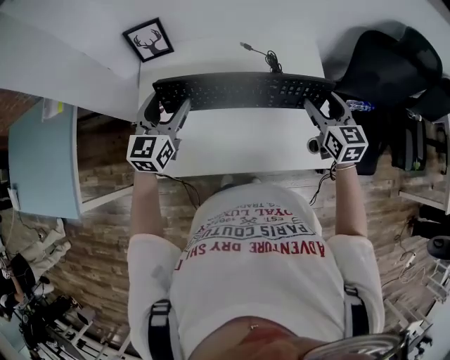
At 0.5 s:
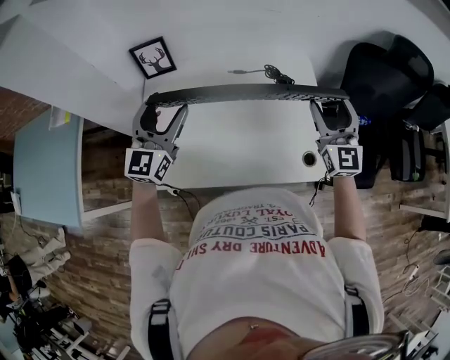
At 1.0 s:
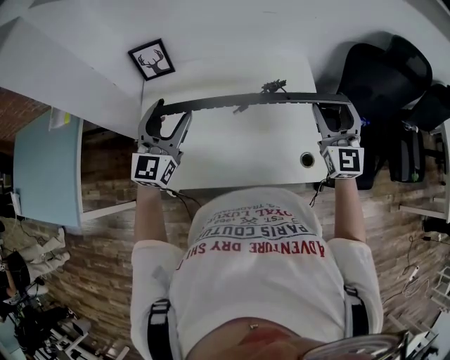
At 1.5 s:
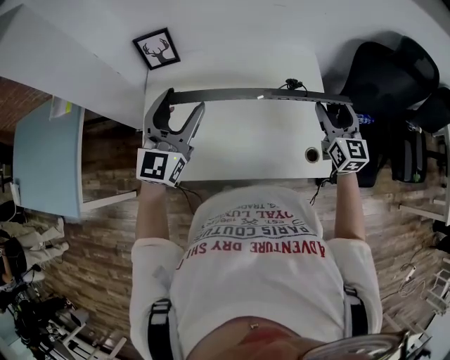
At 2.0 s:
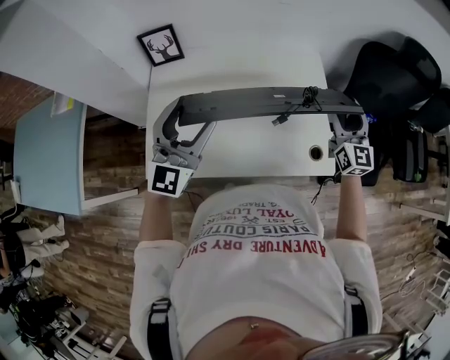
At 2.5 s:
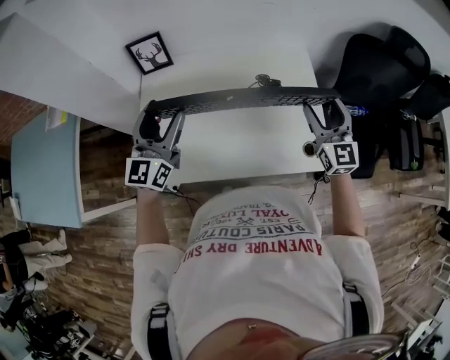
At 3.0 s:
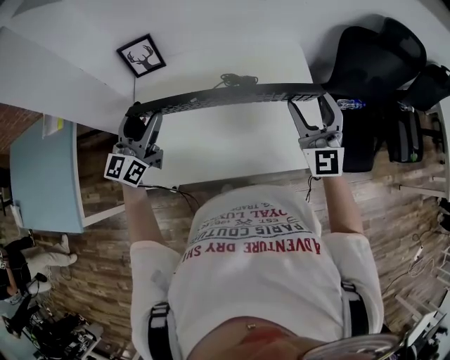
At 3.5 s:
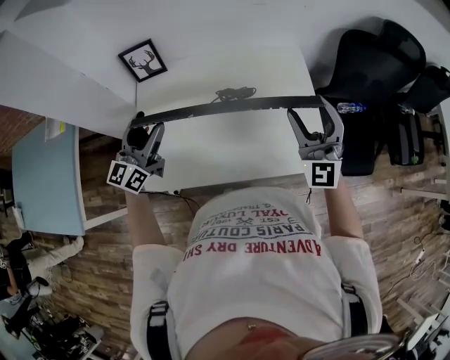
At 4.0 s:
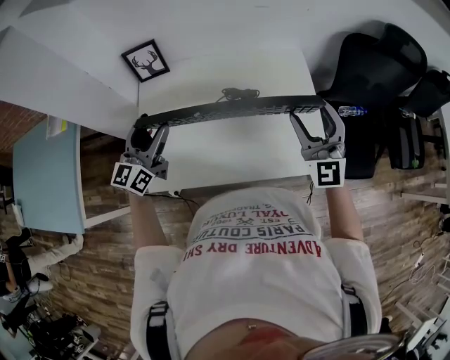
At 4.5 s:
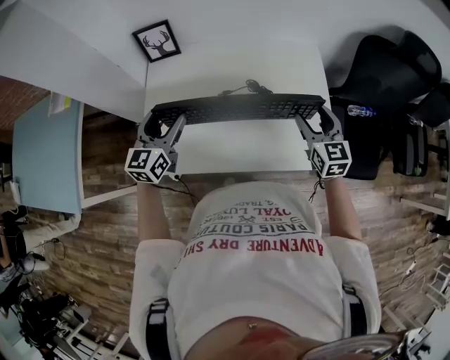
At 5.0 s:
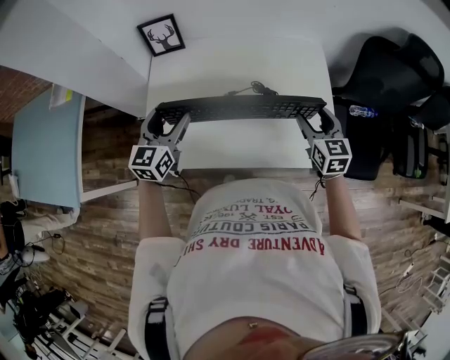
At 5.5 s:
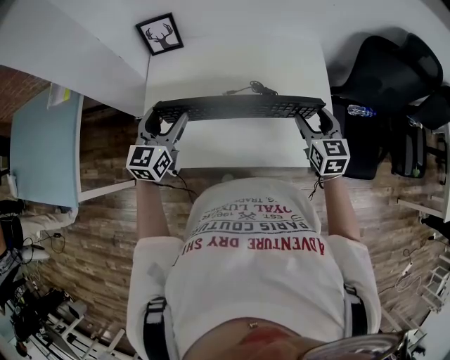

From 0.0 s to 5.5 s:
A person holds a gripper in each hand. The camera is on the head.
From 0.0 s to 2.0 s: The left gripper shifts about 15 cm upward, backward and to the right, and rotates about 30 degrees, while the right gripper goes approximately 10 cm to the right and upward, and swivels approximately 20 degrees.
From 2.0 s to 3.5 s: The right gripper heads to the left, upward and backward, covering approximately 15 cm, and changes its angle by approximately 30 degrees, while the left gripper is displaced to the left and downward by roughly 10 cm, and swivels about 30 degrees.
From 3.5 s to 5.5 s: The right gripper shifts approximately 15 cm downward, and points its fingers some 40 degrees further downward. The left gripper travels downward by some 5 cm, and swivels approximately 20 degrees.

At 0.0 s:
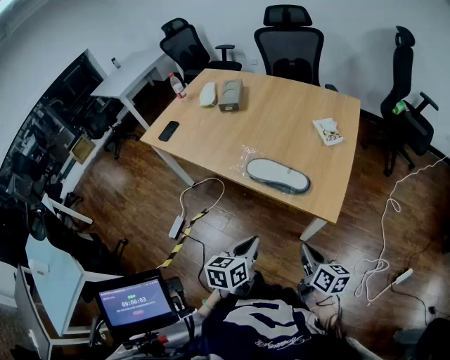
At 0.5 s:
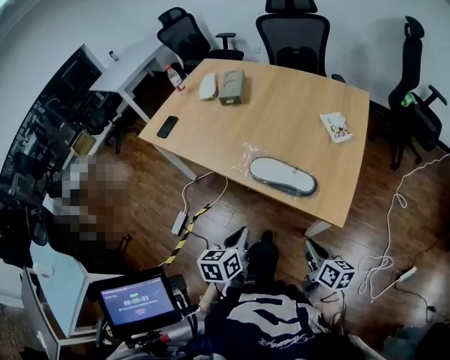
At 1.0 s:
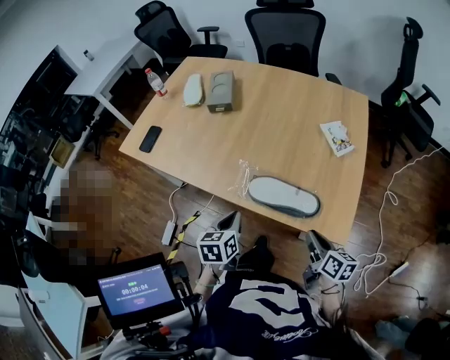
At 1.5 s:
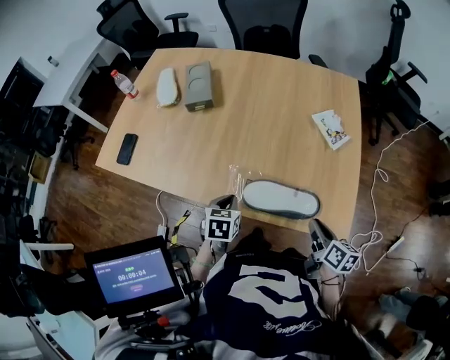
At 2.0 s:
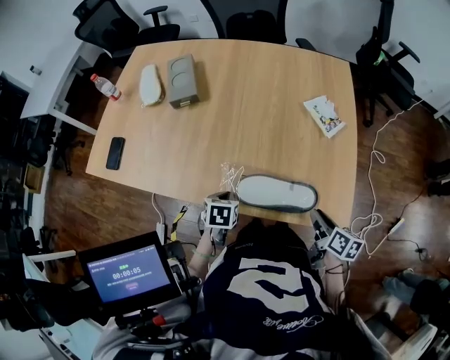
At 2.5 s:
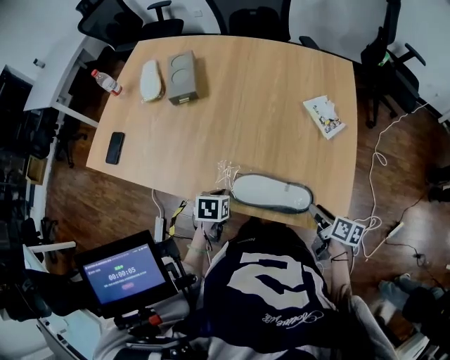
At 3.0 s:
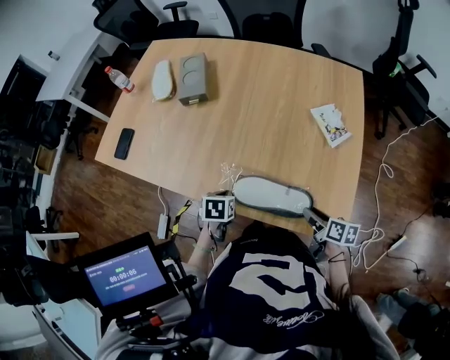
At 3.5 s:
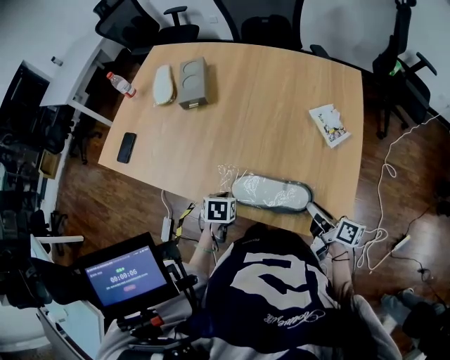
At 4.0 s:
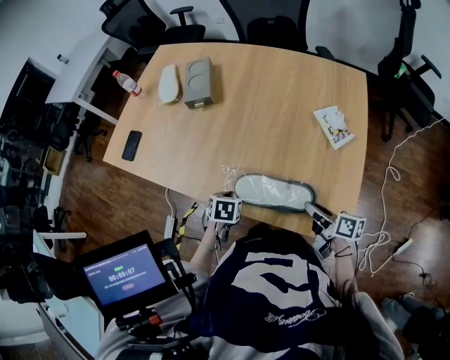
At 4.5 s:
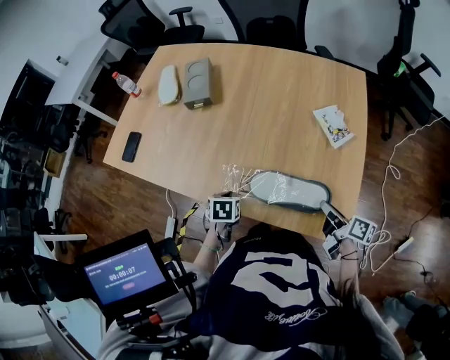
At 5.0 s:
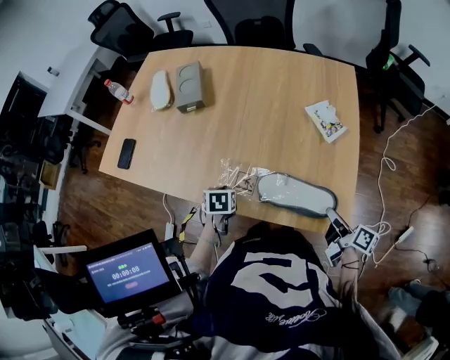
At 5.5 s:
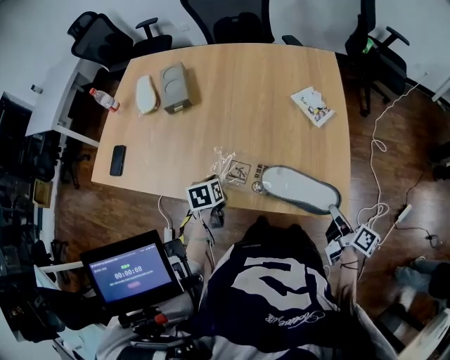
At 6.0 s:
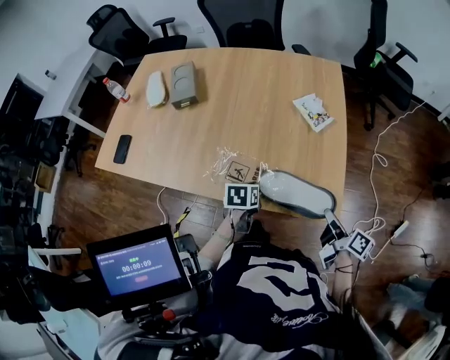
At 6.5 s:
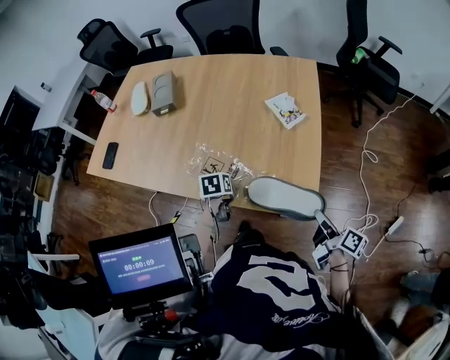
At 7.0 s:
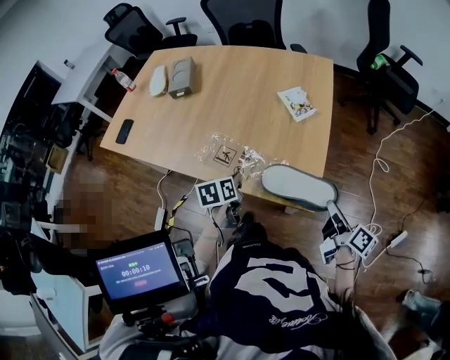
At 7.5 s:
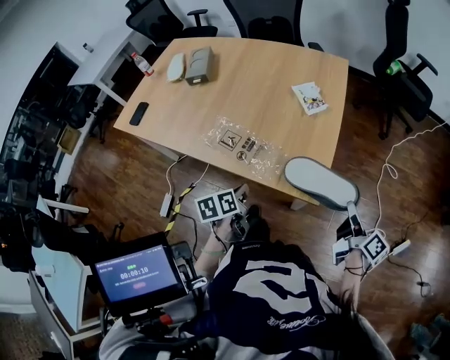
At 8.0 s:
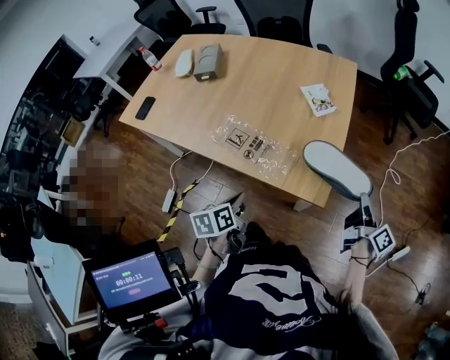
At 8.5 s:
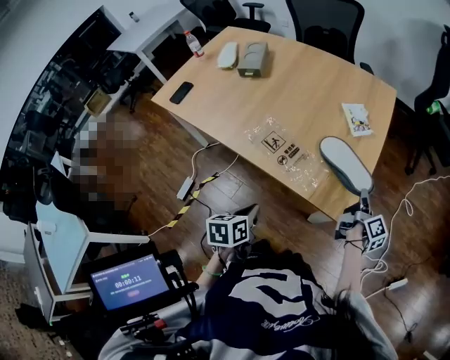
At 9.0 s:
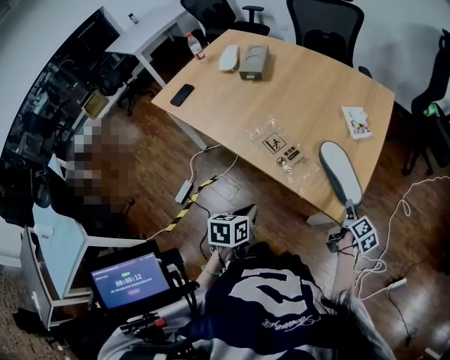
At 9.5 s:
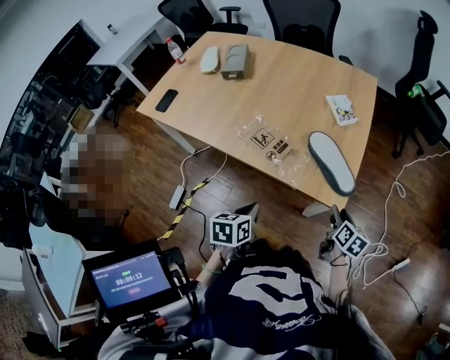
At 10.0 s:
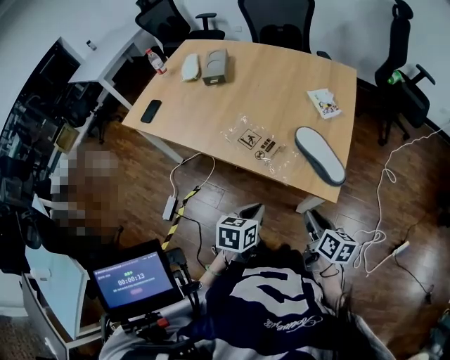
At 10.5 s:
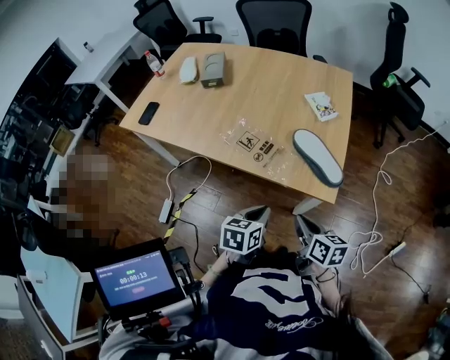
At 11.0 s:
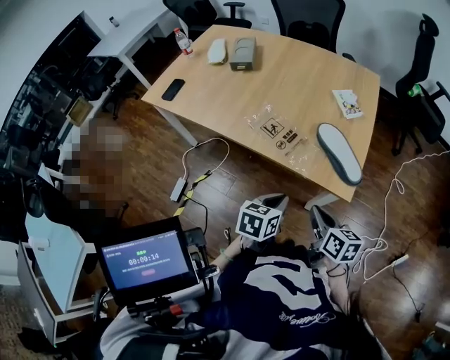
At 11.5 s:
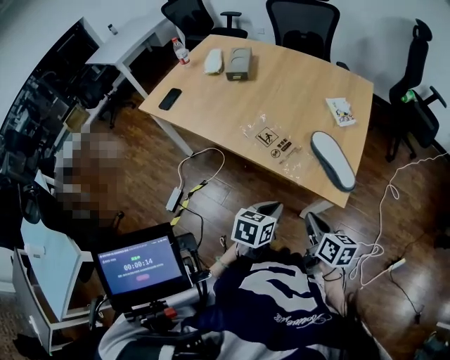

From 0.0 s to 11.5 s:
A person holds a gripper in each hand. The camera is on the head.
From 0.0 s to 2.0 s: The left gripper heads forward and downward, covering about 40 cm, and tilts its fingers approximately 30 degrees downward, while the right gripper travels forward by roughly 25 cm, and changes its angle by roughly 30 degrees.
From 2.0 s to 4.0 s: The right gripper goes about 5 cm forward, and swivels some 30 degrees.
From 4.0 s to 6.0 s: The left gripper changes place by roughly 15 cm. Meanwhile the right gripper changes place by some 15 cm, and turns by some 30 degrees.
From 6.0 s to 7.5 s: The left gripper travels backward and upward by about 15 cm, and turns by approximately 30 degrees, while the right gripper goes roughly 15 cm to the right.
From 7.5 s to 9.5 s: The right gripper travels to the left and downward by some 15 cm, changes its angle by roughly 40 degrees, and opens up. The left gripper is displaced backward by about 10 cm.
From 9.5 s to 11.5 s: The left gripper is displaced to the right by roughly 5 cm. Meanwhile the right gripper shifts some 15 cm to the left, upward and backward, rotates about 30 degrees, and closes its fingers.

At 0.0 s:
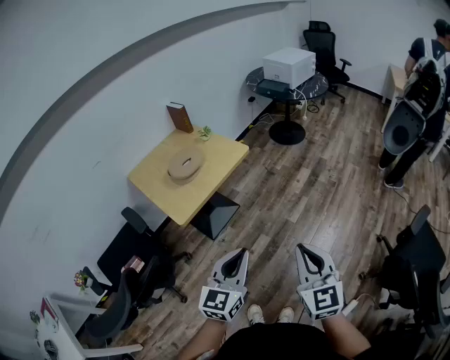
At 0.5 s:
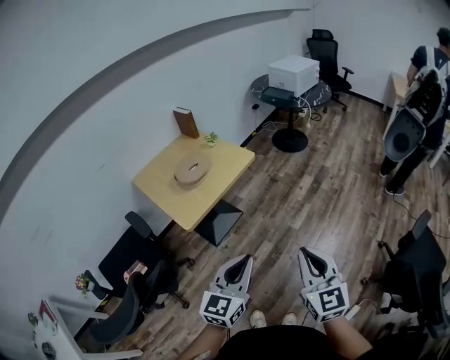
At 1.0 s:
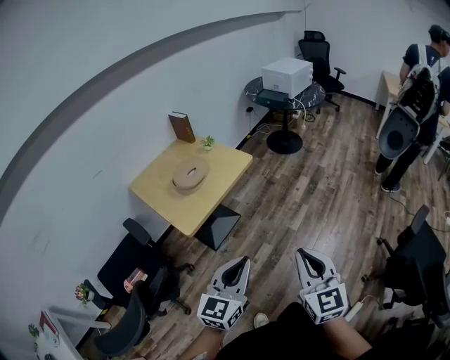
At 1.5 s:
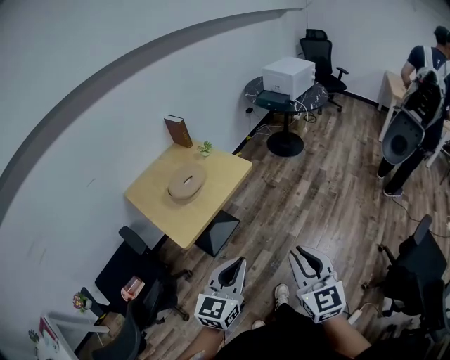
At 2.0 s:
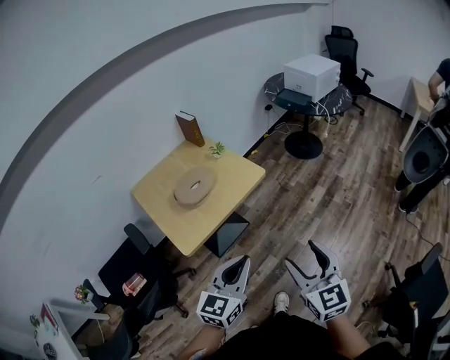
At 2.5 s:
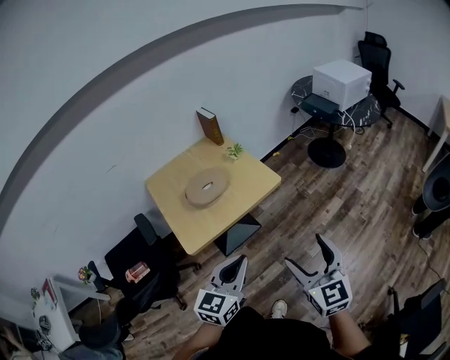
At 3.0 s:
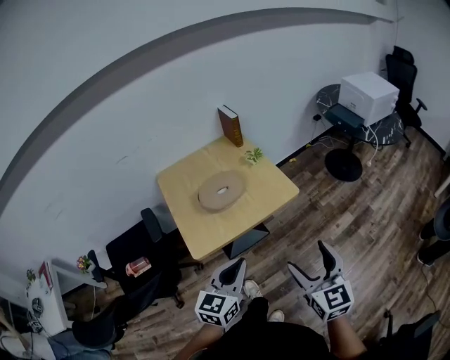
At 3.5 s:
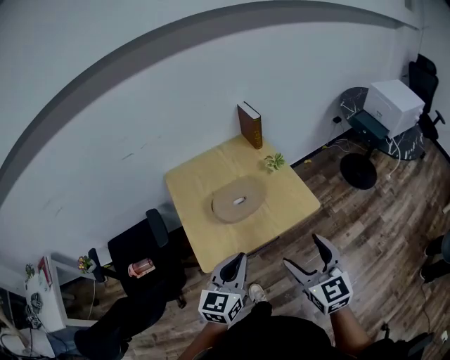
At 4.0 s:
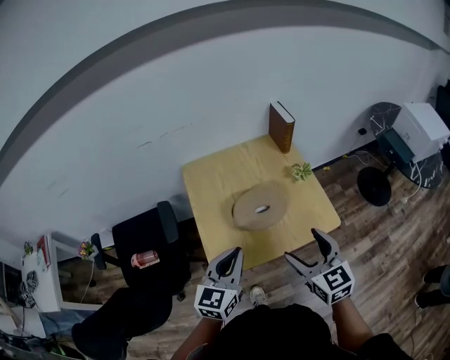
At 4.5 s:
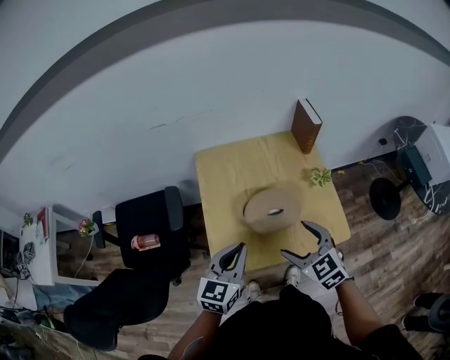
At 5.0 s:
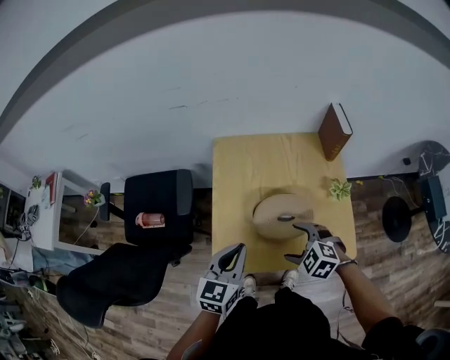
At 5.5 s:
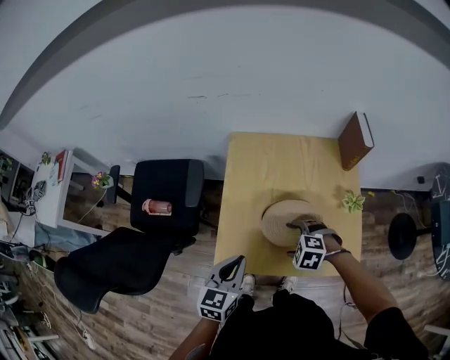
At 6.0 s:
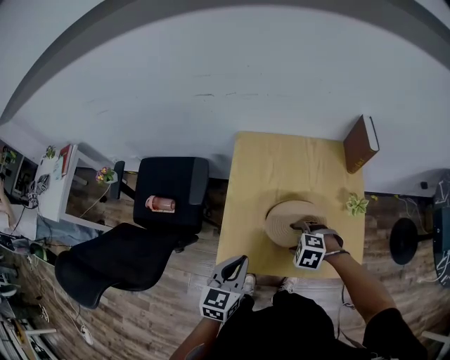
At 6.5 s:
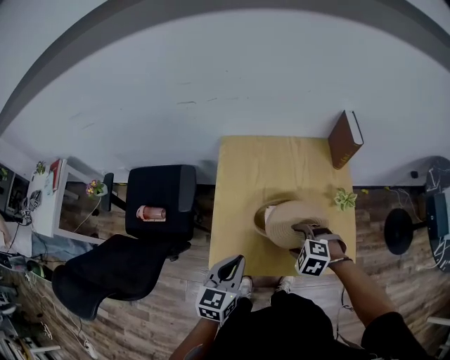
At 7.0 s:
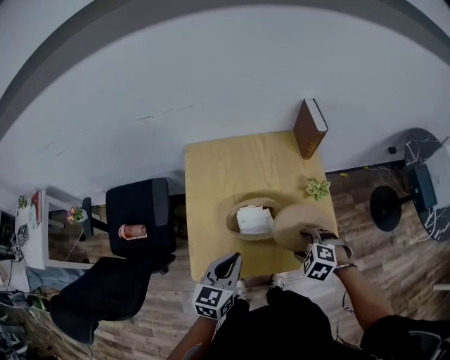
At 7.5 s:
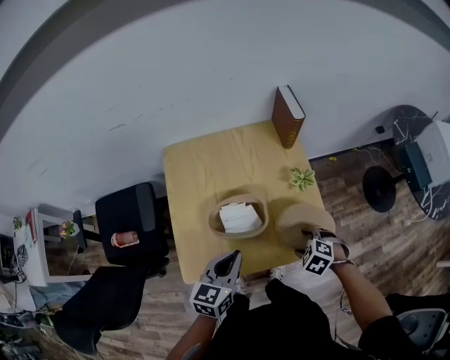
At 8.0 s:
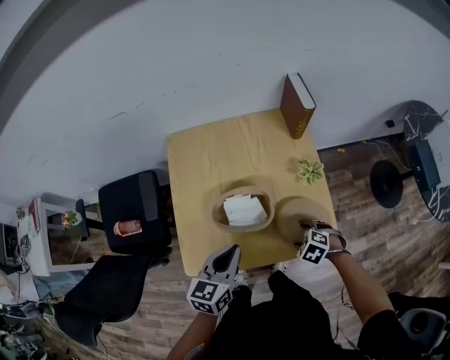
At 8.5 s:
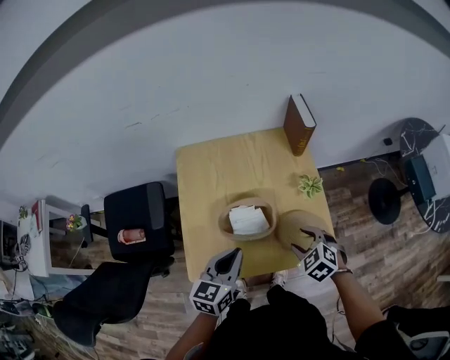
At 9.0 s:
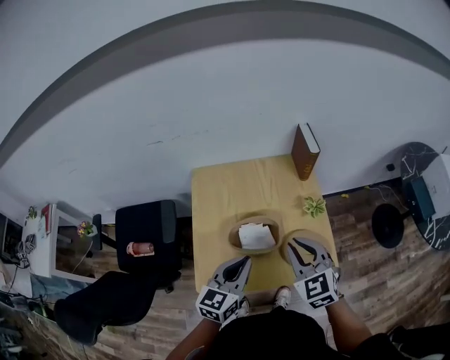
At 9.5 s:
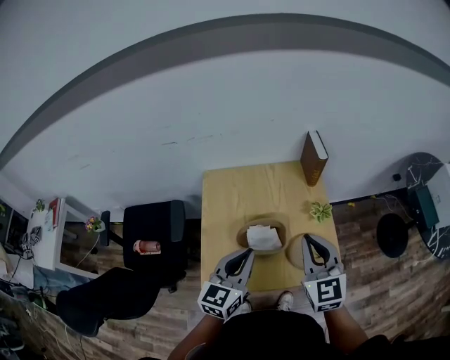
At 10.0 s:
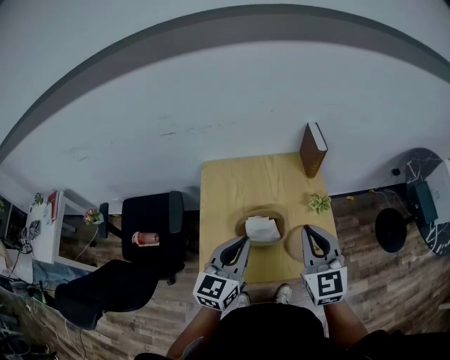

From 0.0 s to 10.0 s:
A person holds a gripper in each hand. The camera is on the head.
From 0.0 s to 2.0 s: The grippers both shift forward by some 20 cm. The right gripper opens.
From 2.0 s to 4.0 s: The left gripper moves some 35 cm, and swivels roughly 30 degrees; the right gripper changes place by some 40 cm, and rotates approximately 40 degrees.
From 4.0 s to 6.0 s: The left gripper is displaced downward by approximately 10 cm, and rotates roughly 30 degrees. The right gripper goes some 20 cm downward, and tilts its fingers some 50 degrees downward.
From 6.0 s to 8.0 s: The right gripper shifts by roughly 20 cm, and swivels about 30 degrees. Meanwhile the left gripper shifts by approximately 15 cm.
From 8.0 s to 10.0 s: The left gripper moves upward, some 15 cm, and swivels roughly 20 degrees. Meanwhile the right gripper shifts approximately 35 cm upward, angles its fingers upward, by approximately 70 degrees, and closes up.
